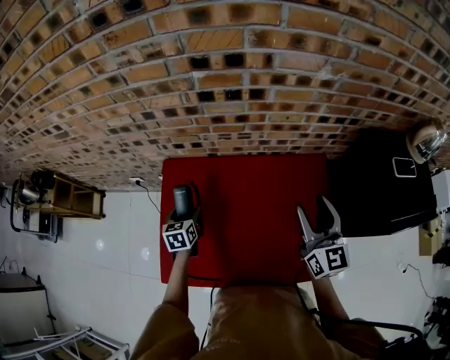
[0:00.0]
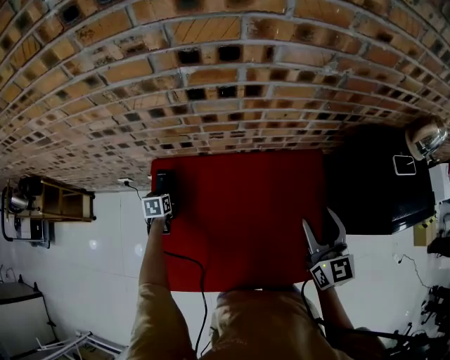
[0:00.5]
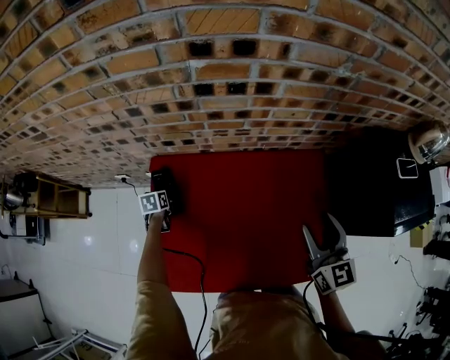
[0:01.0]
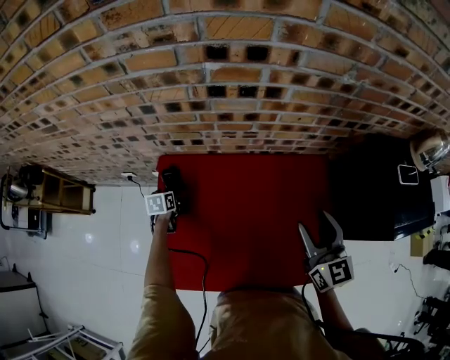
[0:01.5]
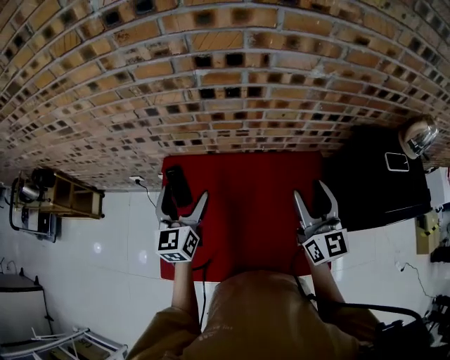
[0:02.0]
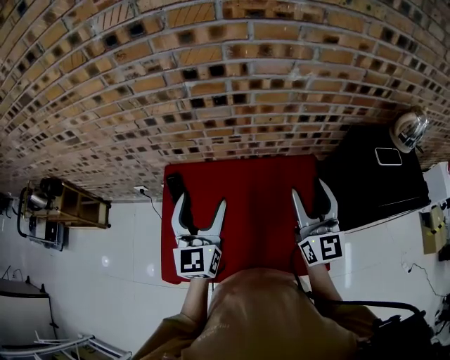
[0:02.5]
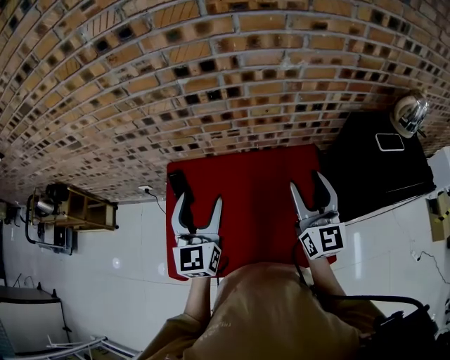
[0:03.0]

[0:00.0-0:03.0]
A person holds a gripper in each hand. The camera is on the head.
0.0 to 1.5 s: The left gripper travels downward, forward and to the left by some 20 cm, and opens up.
1.5 to 3.0 s: The right gripper moves upward and to the right, some 15 cm. The left gripper shifts roughly 60 cm upward, to the right and backward, and points its fingers roughly 50 degrees further upward.

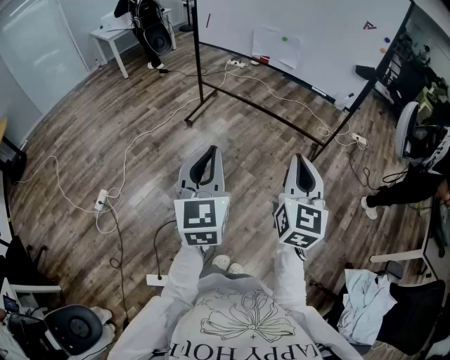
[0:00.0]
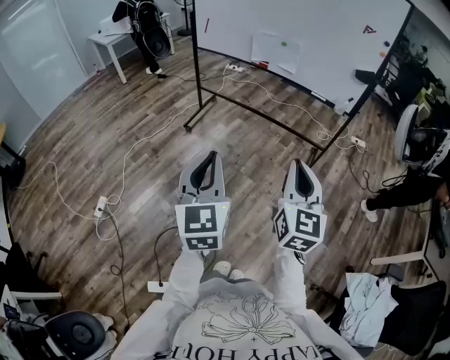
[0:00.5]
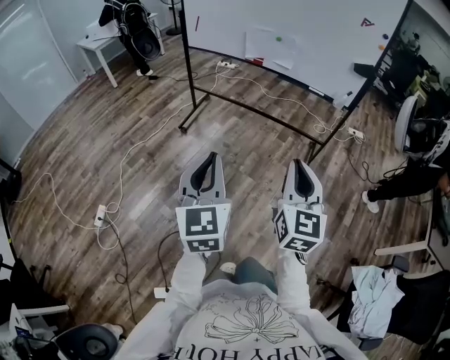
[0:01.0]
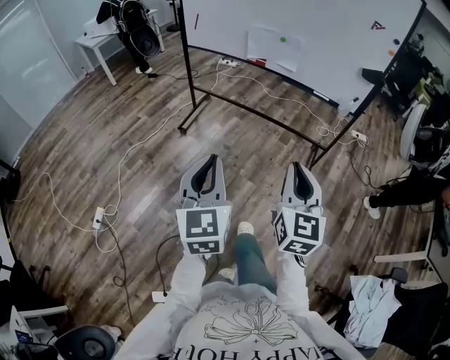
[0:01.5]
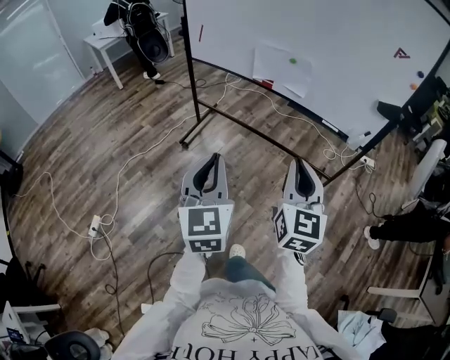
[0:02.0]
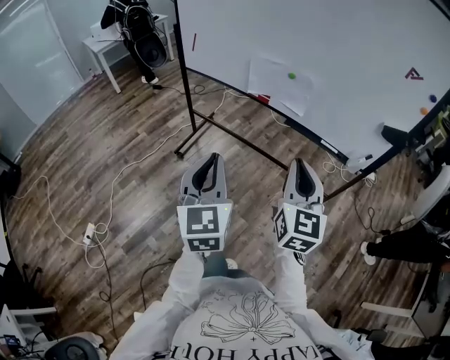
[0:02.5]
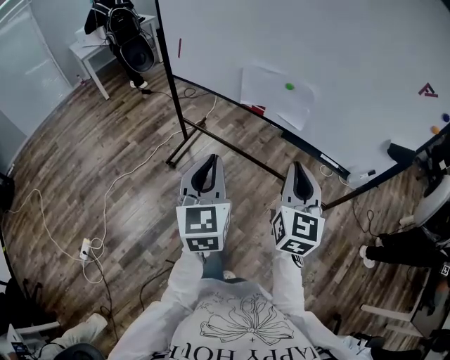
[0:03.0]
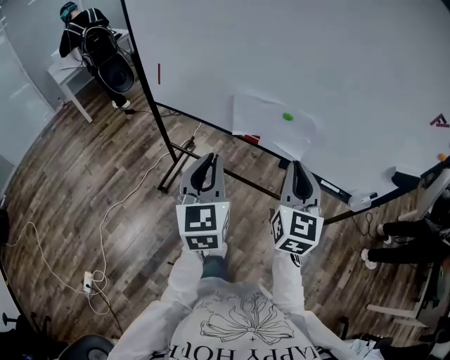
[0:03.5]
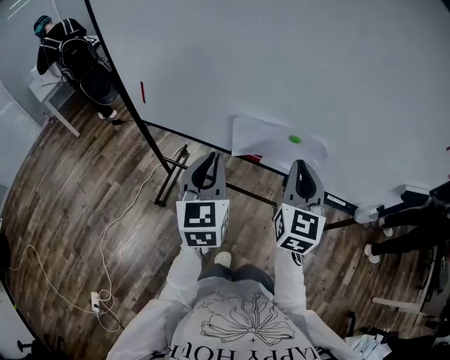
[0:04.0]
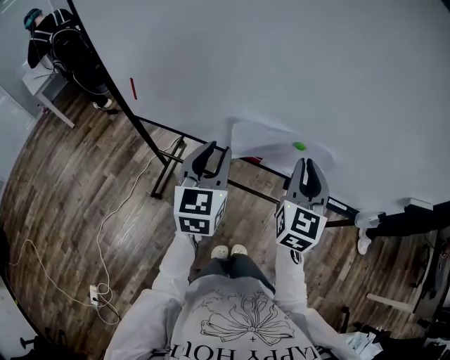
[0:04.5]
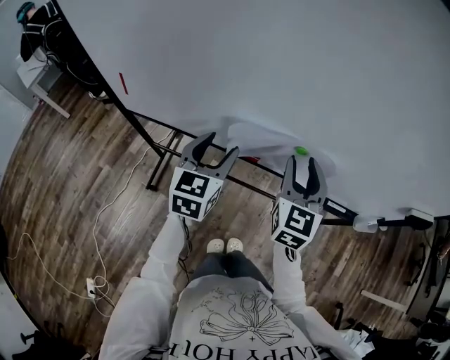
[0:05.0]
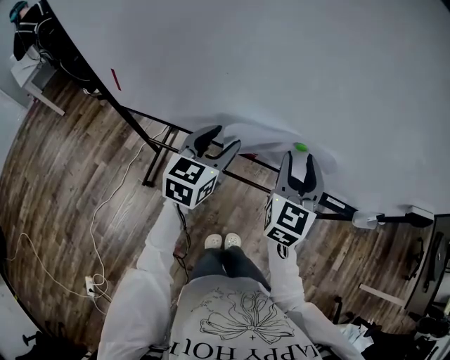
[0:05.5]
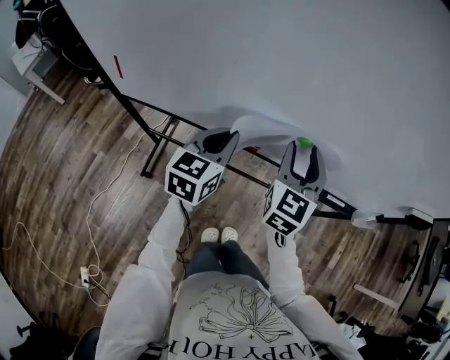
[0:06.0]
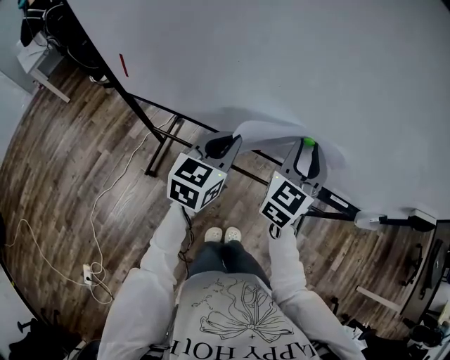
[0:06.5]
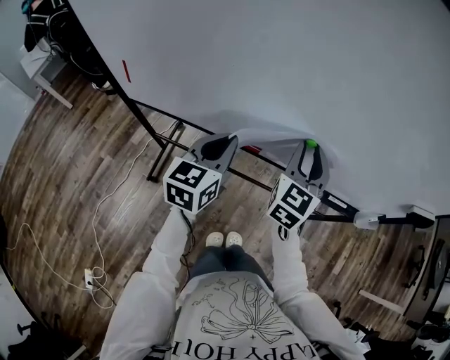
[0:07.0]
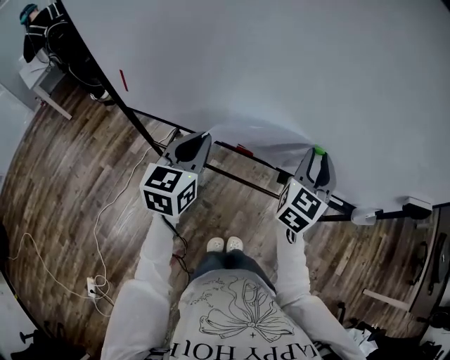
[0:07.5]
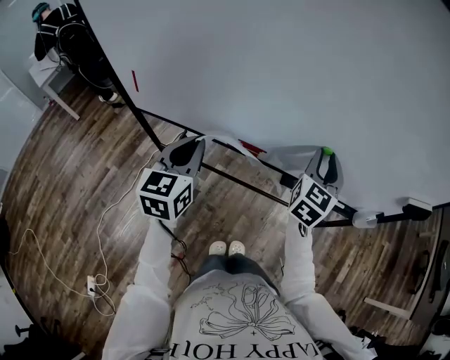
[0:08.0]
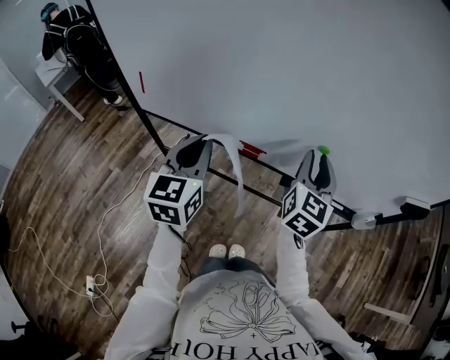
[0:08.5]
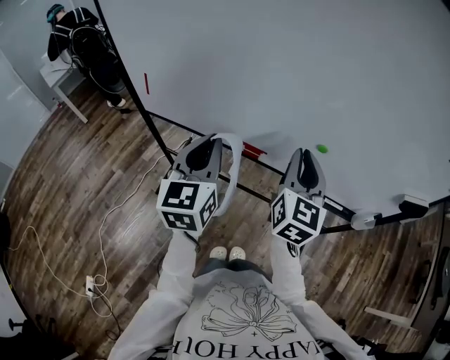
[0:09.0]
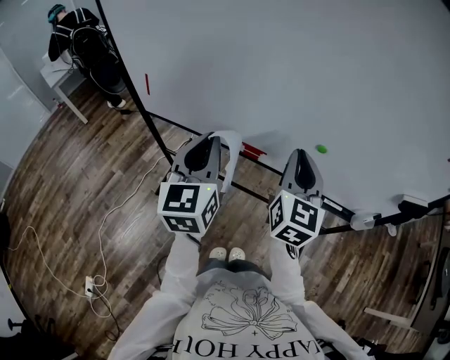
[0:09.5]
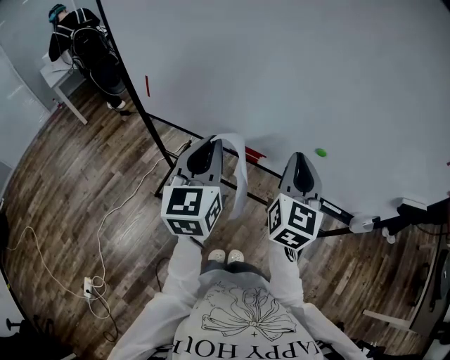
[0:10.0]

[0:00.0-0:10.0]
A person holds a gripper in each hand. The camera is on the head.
0.0 to 2.0 s: The two grippers go some 30 cm forward.
2.0 to 4.0 s: The pair of grippers is taken forward, about 50 cm.
4.0 to 6.0 s: The grippers both shift forward and downward by about 15 cm. The left gripper rotates approximately 30 degrees, and opens and closes again, while the right gripper opens up.
6.0 to 8.0 s: The right gripper travels to the right by approximately 10 cm, while the left gripper moves backward and upward, some 10 cm.
8.0 to 10.0 s: The left gripper shifts approximately 10 cm upward; the right gripper shifts roughly 15 cm to the left, backward and upward, swivels roughly 20 degrees, and closes its fingers.

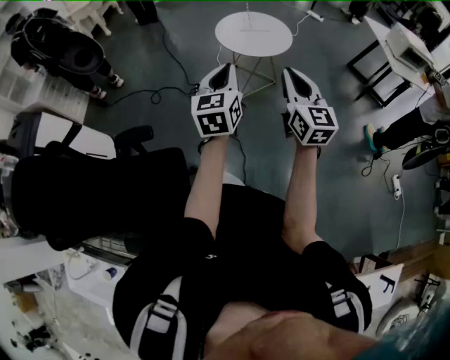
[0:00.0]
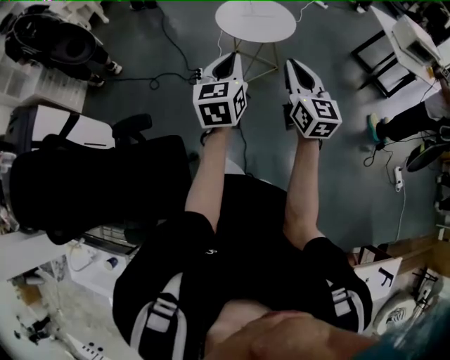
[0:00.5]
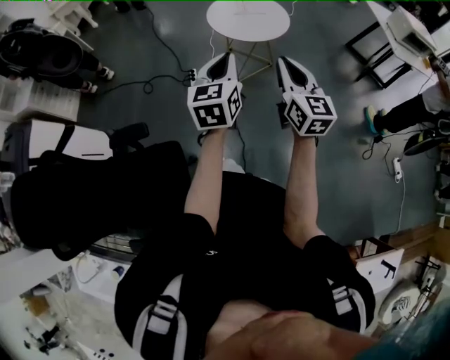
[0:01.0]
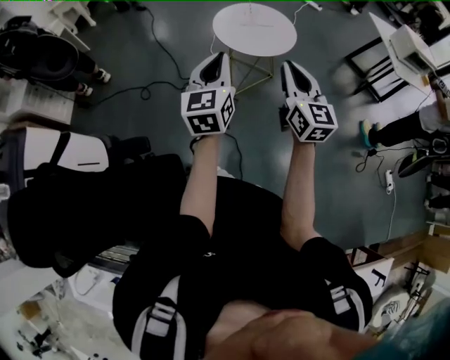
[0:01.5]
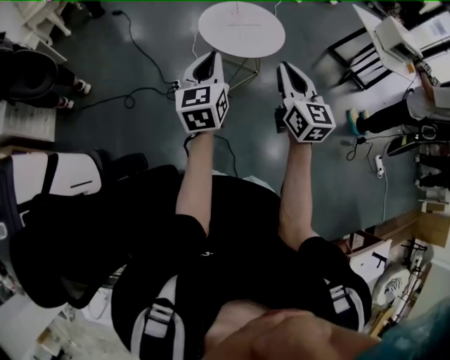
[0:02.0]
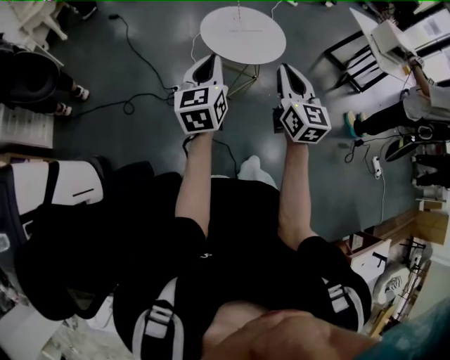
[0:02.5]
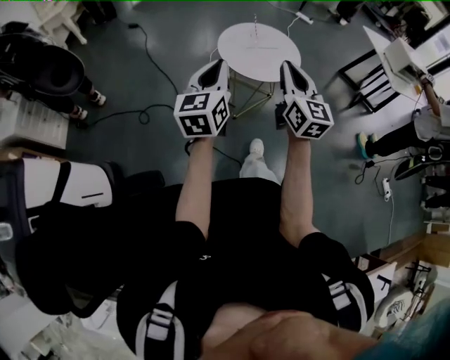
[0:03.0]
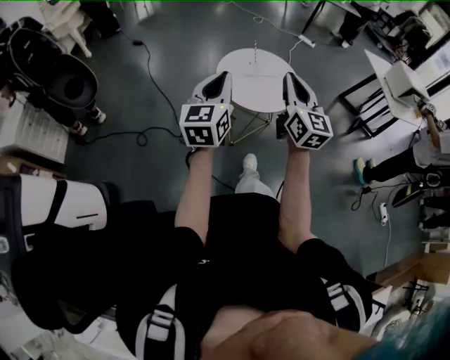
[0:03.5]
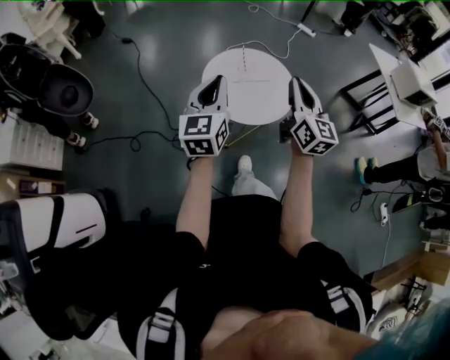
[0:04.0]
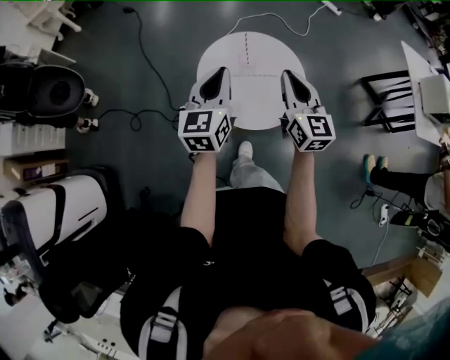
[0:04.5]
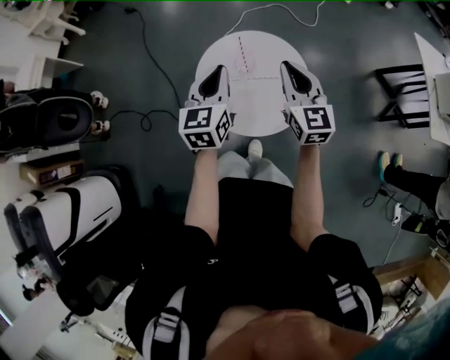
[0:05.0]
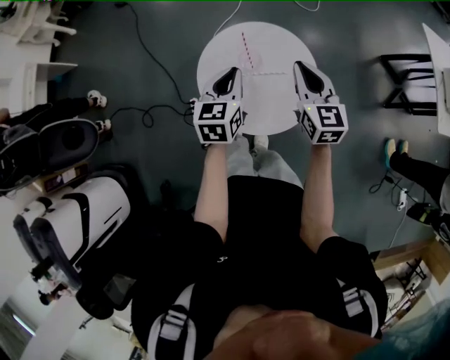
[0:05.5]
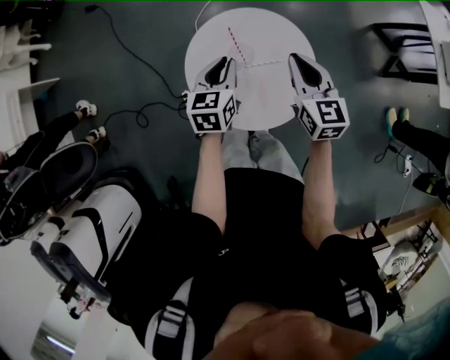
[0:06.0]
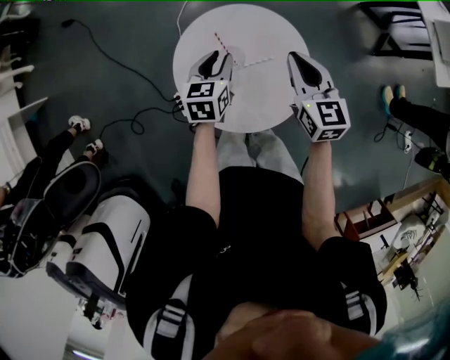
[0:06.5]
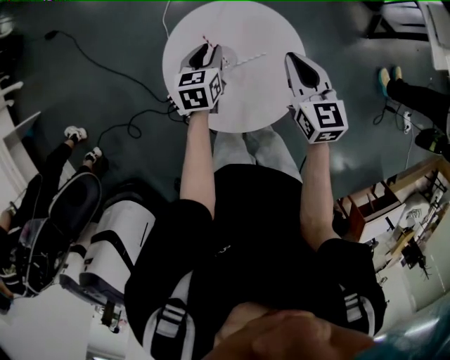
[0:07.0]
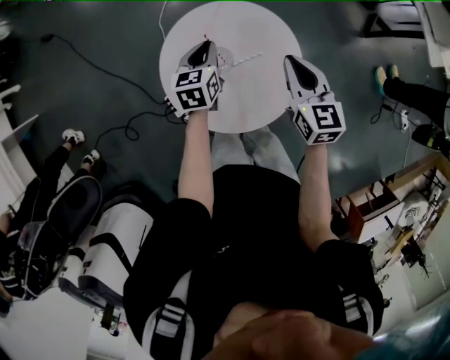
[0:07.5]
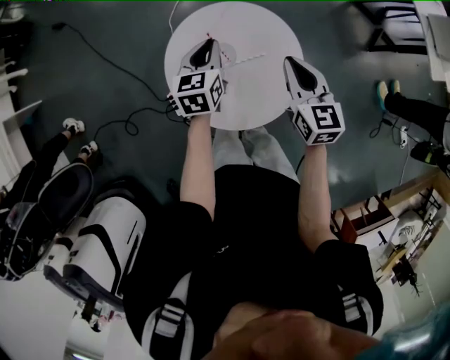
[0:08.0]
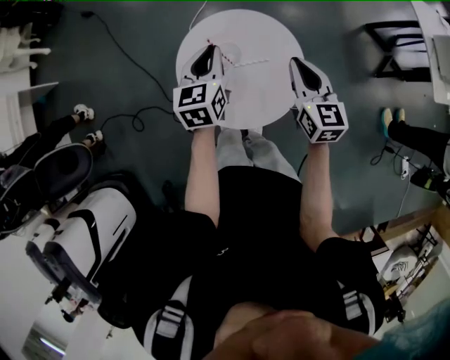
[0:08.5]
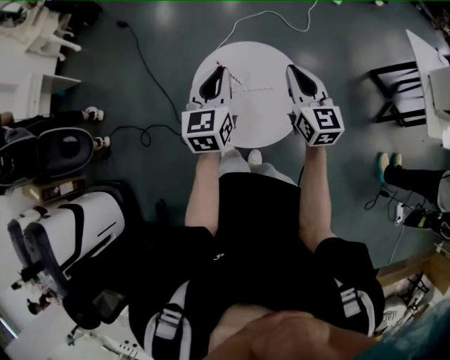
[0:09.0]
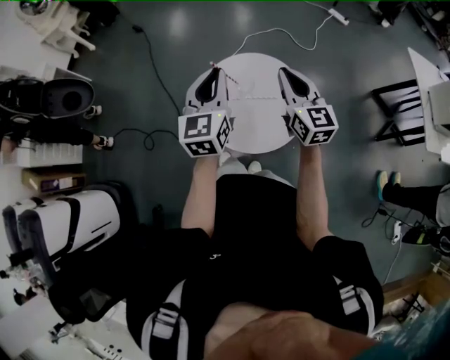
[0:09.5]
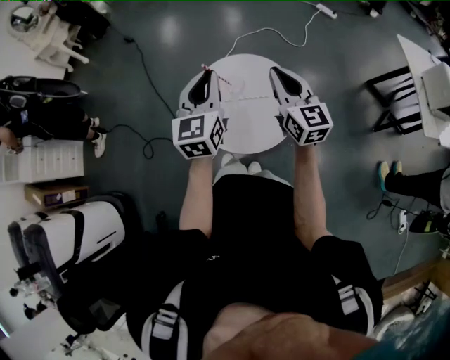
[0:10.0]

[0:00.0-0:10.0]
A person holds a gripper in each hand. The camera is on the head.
0.0 to 2.0 s: The left gripper shifts approximately 20 cm forward and to the left. The right gripper heads forward, covering approximately 15 cm.
2.0 to 4.0 s: Both grippers travel together forward, approximately 25 cm.
4.0 to 6.0 s: Both grippers travel together forward and downward, some 35 cm. The left gripper points its fingers roughly 30 degrees further downward, while the right gripper turns by about 30 degrees.
6.0 to 8.0 s: The left gripper shifts roughly 5 cm forward, and moves roughly 10 cm downward and comes back.
8.0 to 10.0 s: The right gripper shifts roughly 15 cm upward, and changes its angle by approximately 30 degrees; the left gripper moves upward and backward, some 30 cm, and swivels about 30 degrees.

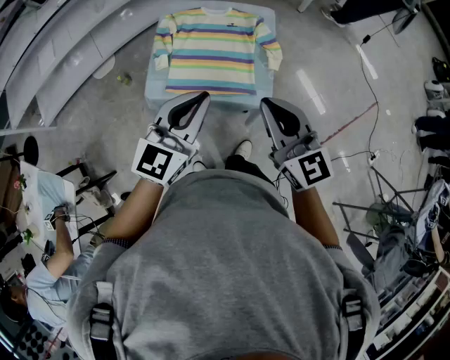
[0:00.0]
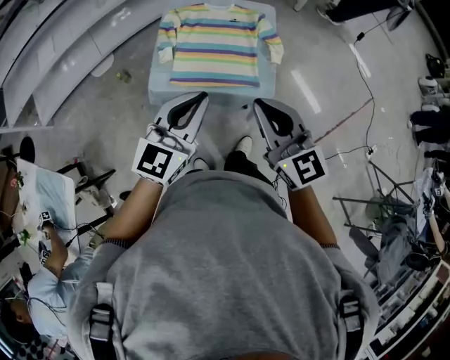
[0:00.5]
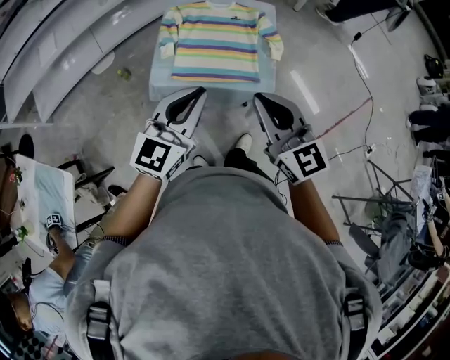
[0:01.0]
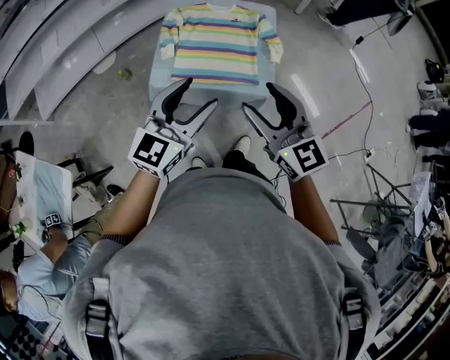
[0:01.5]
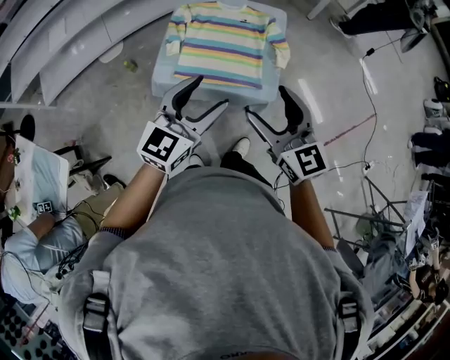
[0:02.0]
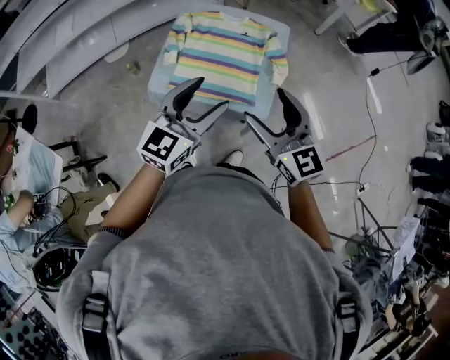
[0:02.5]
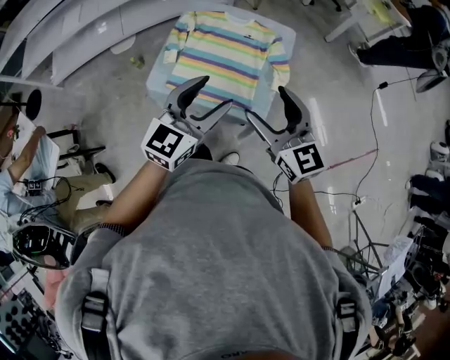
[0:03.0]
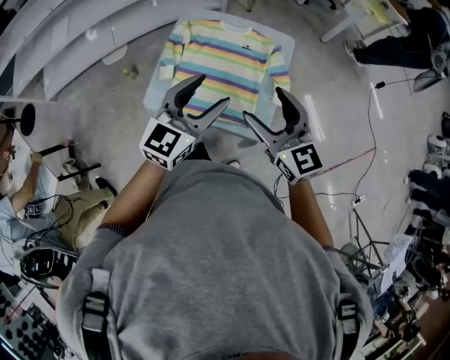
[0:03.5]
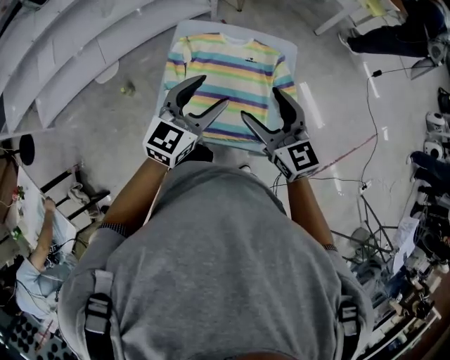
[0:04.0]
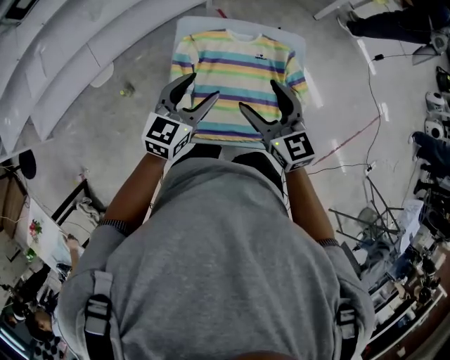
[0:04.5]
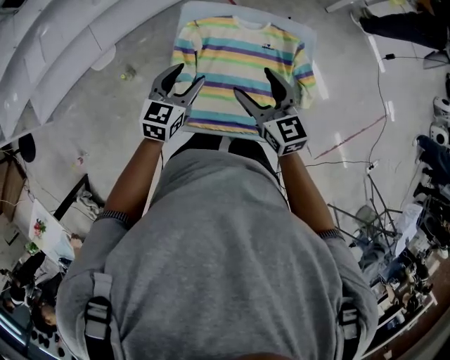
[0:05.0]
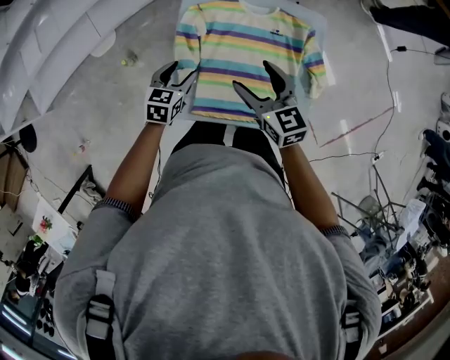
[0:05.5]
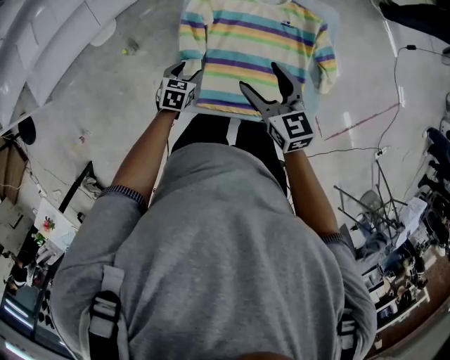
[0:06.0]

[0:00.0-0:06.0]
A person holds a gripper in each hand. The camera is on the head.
0.0 to 2.0 s: The left gripper opens up; the right gripper opens its fingers.
2.0 to 4.0 s: The two grippers go approximately 30 cm forward.
4.0 to 6.0 s: The right gripper travels downward and to the left by some 20 cm; the left gripper moves downward and to the left, some 40 cm, and tips its fingers downward by some 40 degrees.
